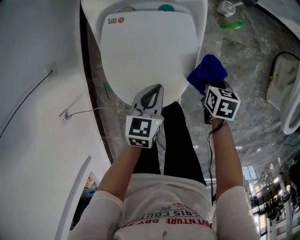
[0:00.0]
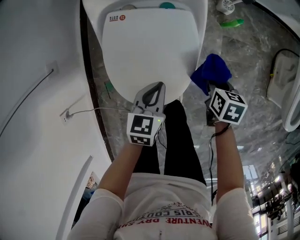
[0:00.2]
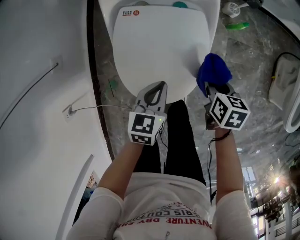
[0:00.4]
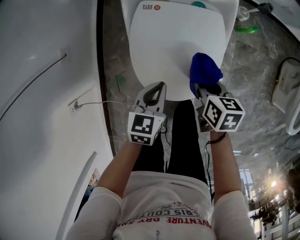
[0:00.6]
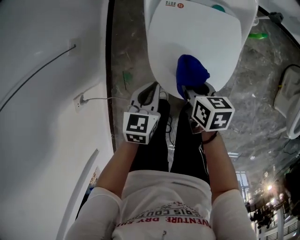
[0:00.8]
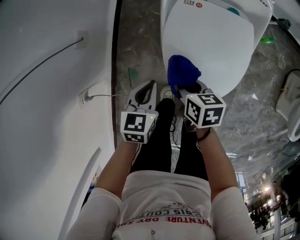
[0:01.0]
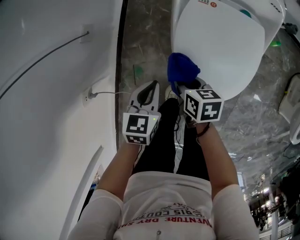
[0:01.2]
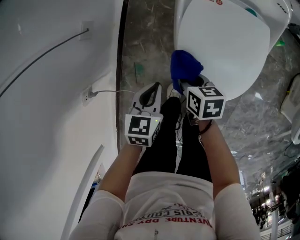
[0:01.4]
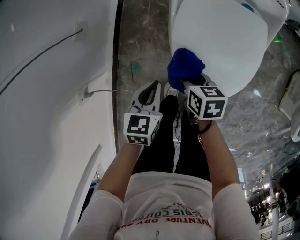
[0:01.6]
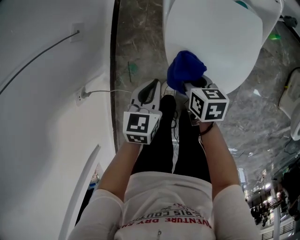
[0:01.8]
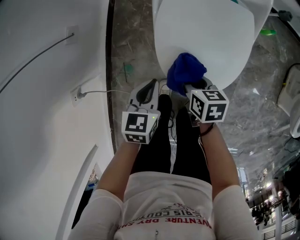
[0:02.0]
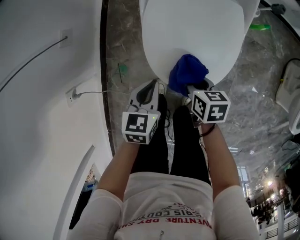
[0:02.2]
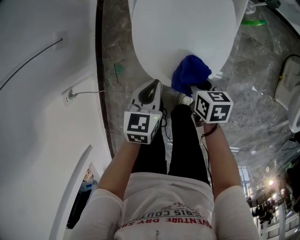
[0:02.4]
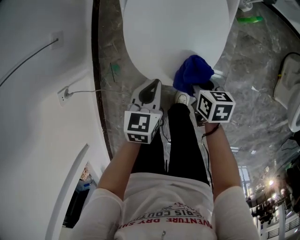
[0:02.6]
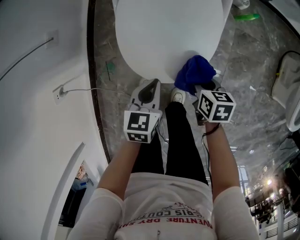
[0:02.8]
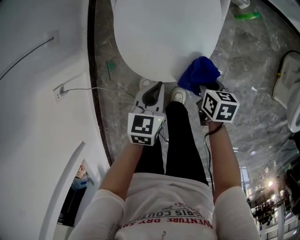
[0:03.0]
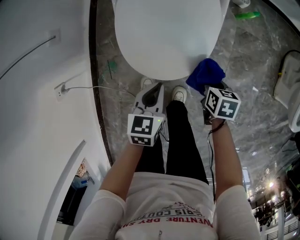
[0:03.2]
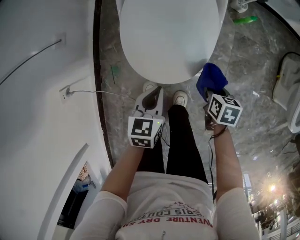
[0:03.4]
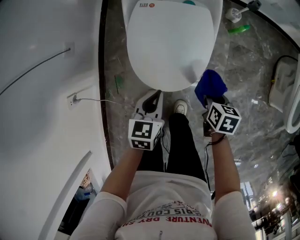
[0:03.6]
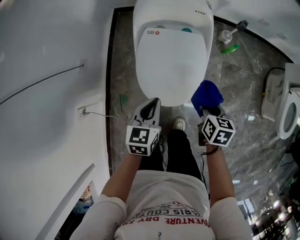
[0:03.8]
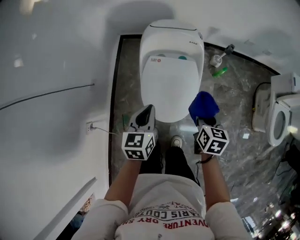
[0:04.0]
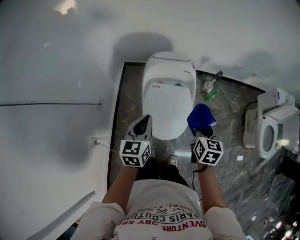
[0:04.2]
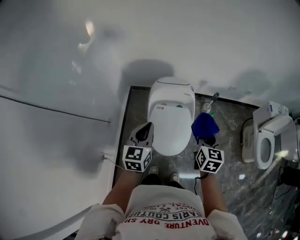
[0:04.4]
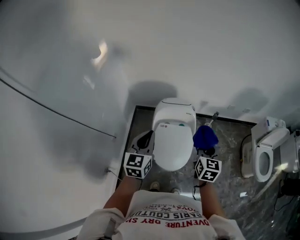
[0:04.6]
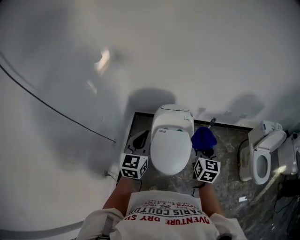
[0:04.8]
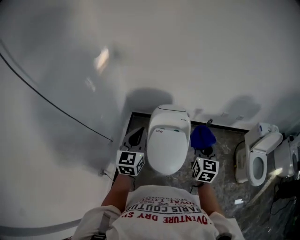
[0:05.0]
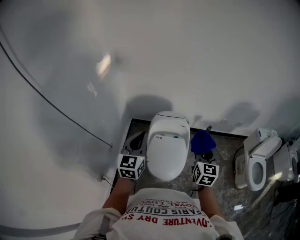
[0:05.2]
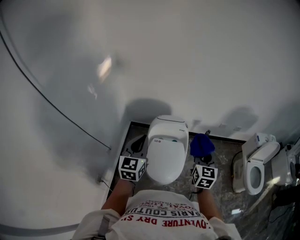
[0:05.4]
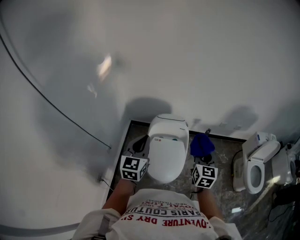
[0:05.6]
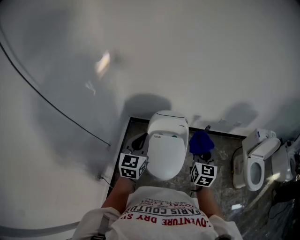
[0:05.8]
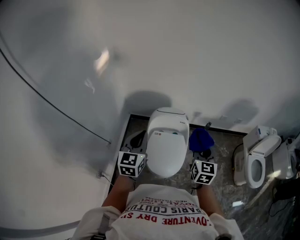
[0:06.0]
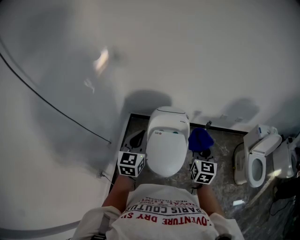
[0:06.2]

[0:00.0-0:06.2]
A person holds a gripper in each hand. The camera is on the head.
0:00.0 to 0:01.6: Both grippers move to the left, about 35 cm. The right gripper changes its angle by approximately 20 degrees.
0:01.6 to 0:03.2: Both grippers travel together to the right and backward, roughly 30 cm.
0:03.2 to 0:04.6: The two grippers go roughly 60 cm upward. The right gripper points its fingers roughly 50 degrees further upward. The left gripper tips its fingers upward by some 40 degrees.
0:04.6 to 0:06.2: The right gripper shifts by roughly 5 cm.

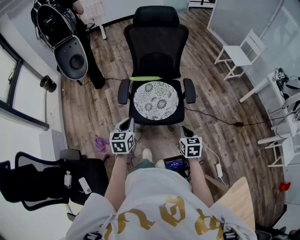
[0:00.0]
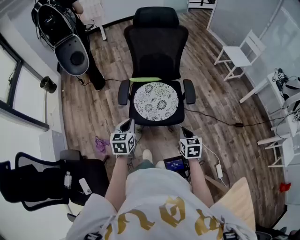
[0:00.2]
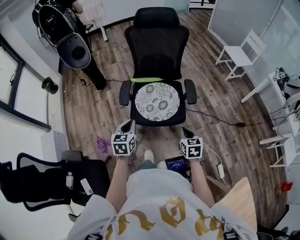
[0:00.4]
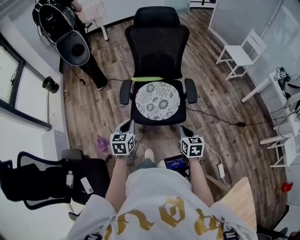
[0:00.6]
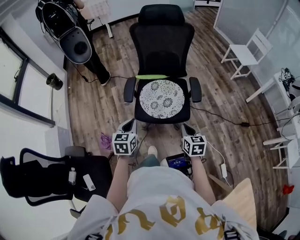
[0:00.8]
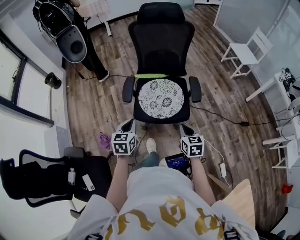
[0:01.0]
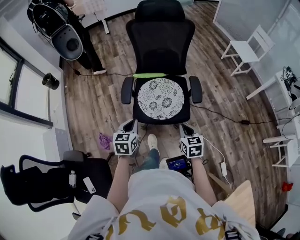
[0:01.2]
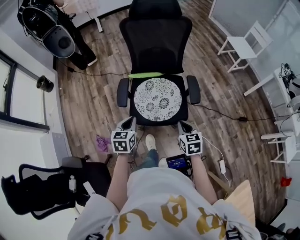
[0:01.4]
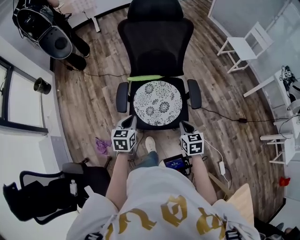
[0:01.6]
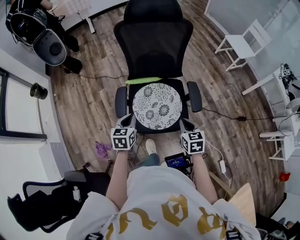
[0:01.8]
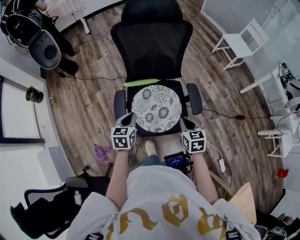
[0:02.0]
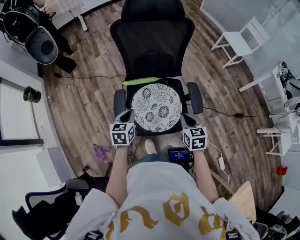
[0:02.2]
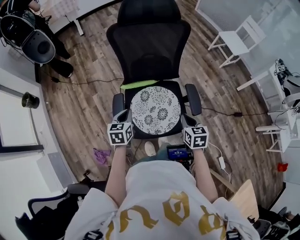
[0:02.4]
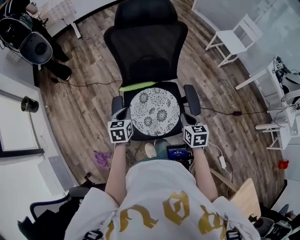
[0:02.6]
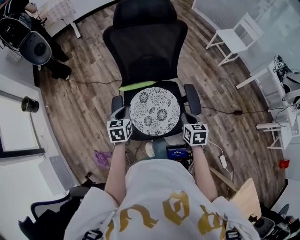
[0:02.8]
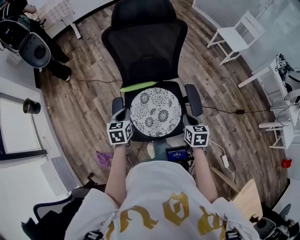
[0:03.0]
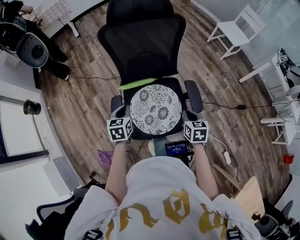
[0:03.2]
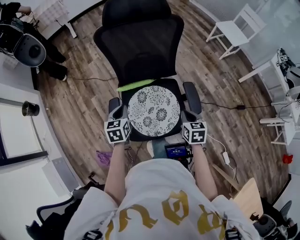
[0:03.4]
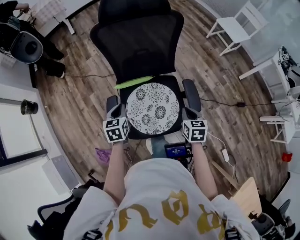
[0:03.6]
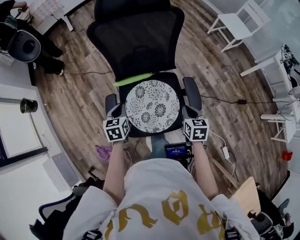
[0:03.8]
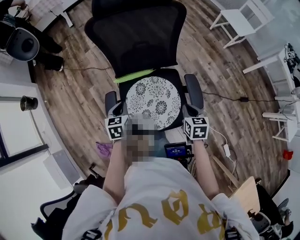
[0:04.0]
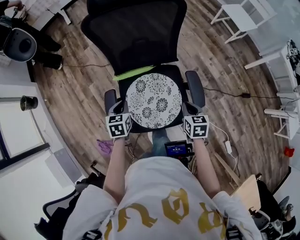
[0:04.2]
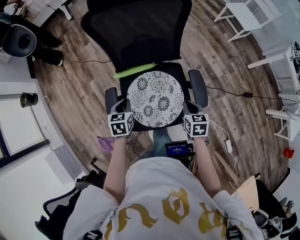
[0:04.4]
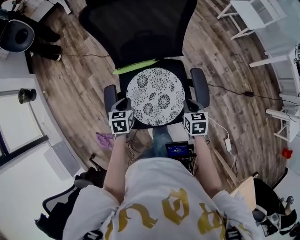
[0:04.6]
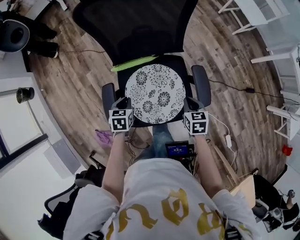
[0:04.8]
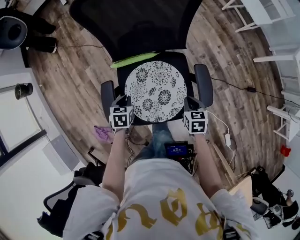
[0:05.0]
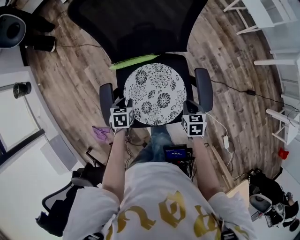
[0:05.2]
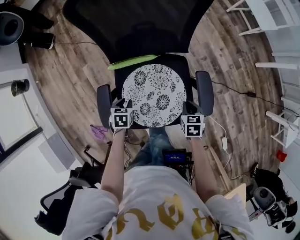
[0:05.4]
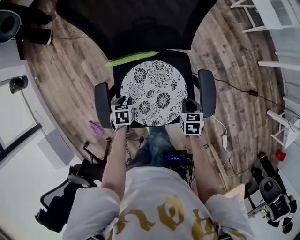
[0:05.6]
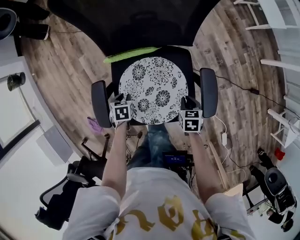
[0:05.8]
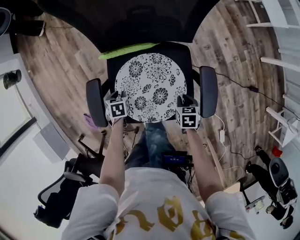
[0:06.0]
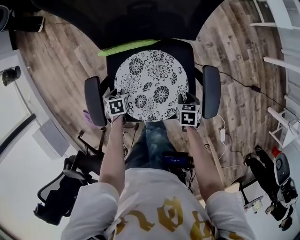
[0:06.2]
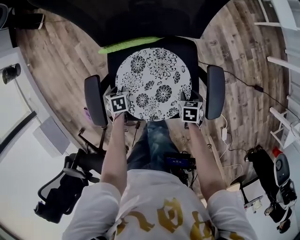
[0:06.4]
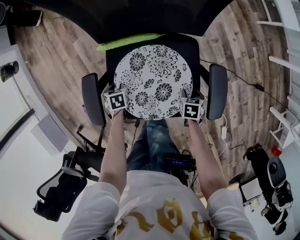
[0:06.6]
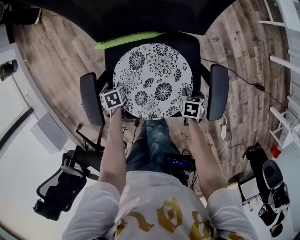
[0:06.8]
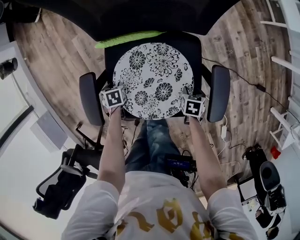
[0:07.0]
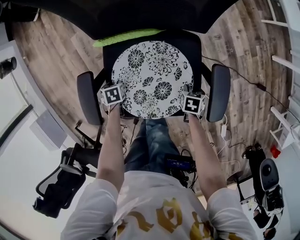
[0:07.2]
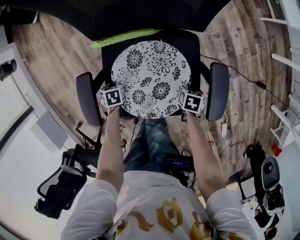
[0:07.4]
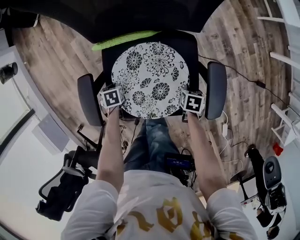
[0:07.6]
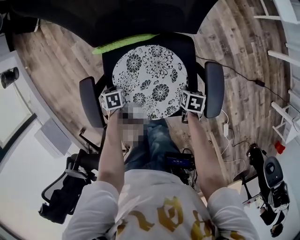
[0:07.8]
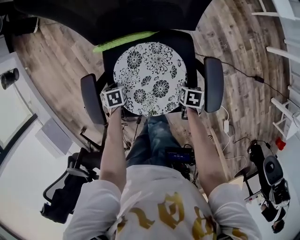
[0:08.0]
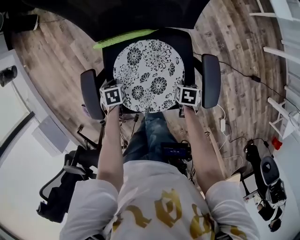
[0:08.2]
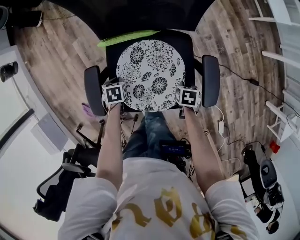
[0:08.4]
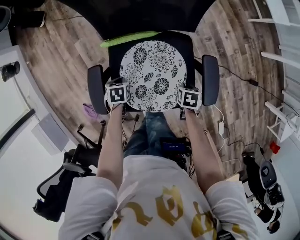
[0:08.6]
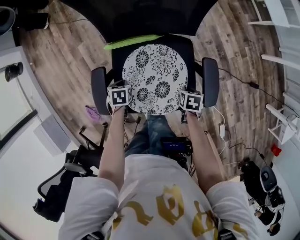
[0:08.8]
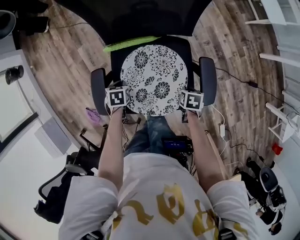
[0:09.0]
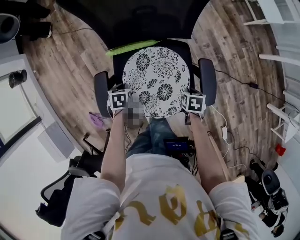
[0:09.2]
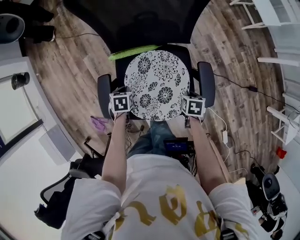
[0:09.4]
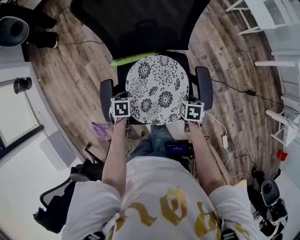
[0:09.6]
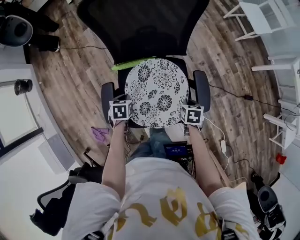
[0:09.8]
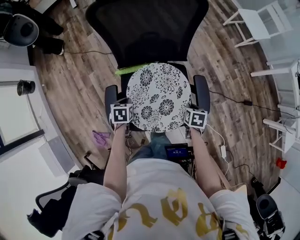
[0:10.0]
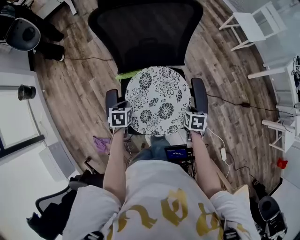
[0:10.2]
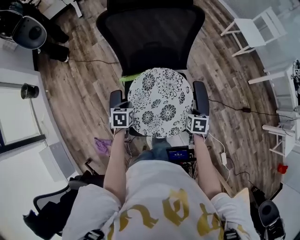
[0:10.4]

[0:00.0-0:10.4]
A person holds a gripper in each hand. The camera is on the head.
0:00.0 to 0:01.4: The grippers both shift forward by about 5 cm.
0:01.4 to 0:03.0: Both grippers travel together forward, approximately 20 cm.
0:03.0 to 0:04.4: The two grippers go approximately 10 cm downward and forward.
0:04.4 to 0:06.0: Both grippers move downward, about 20 cm. The left gripper swivels some 30 degrees, and opens its fingers. The right gripper rotates roughly 20 degrees.
0:06.0 to 0:07.4: Both grippers move downward, about 10 cm. The right gripper opens, then closes once more.
0:07.4 to 0:09.0: Both grippers move upward, some 10 cm.
0:09.0 to 0:10.4: Both grippers travel together upward, about 15 cm.

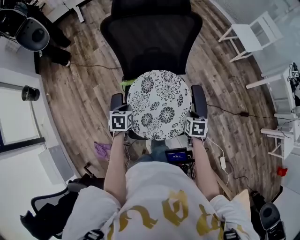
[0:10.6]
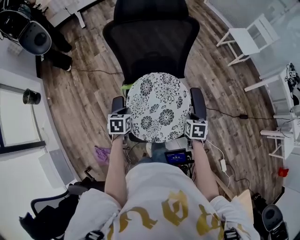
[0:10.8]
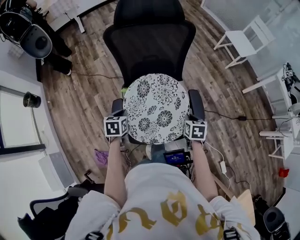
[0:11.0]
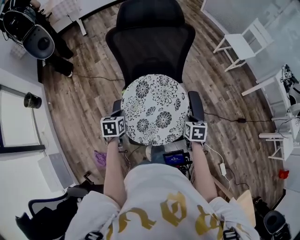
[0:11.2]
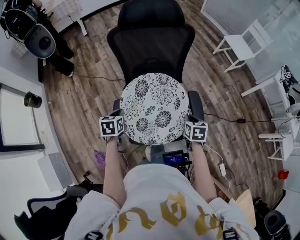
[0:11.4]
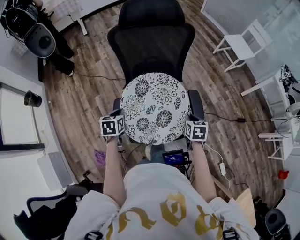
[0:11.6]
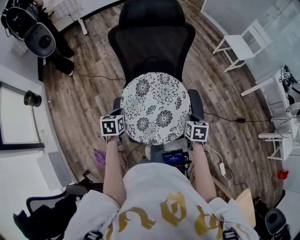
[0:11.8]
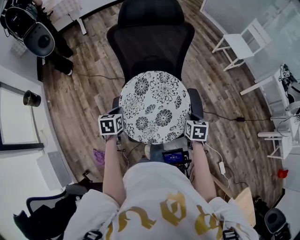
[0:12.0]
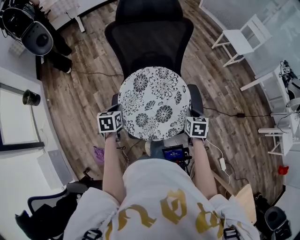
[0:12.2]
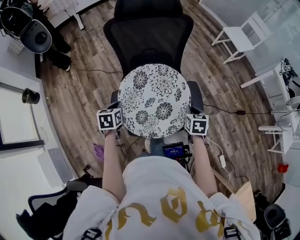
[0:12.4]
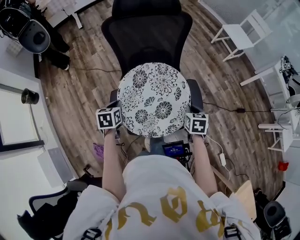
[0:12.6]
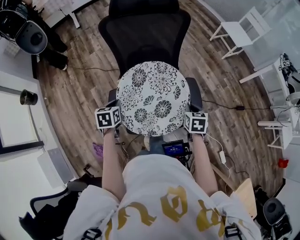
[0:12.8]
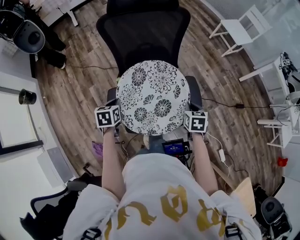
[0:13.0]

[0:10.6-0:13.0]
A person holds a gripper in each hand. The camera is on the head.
0:10.6 to 0:11.8: The two grippers go approximately 5 cm upward.
0:11.8 to 0:13.0: The grippers move only a little.

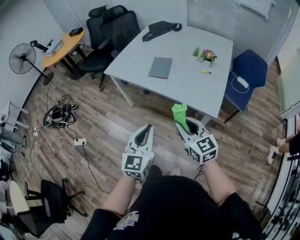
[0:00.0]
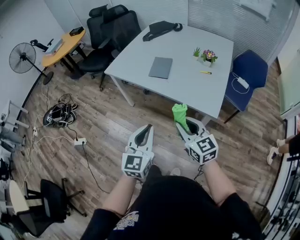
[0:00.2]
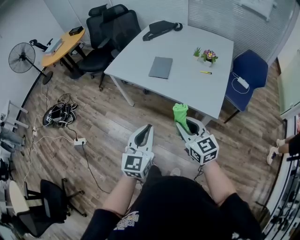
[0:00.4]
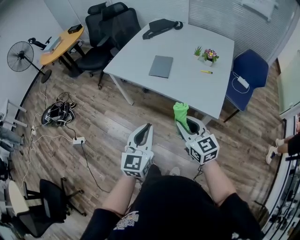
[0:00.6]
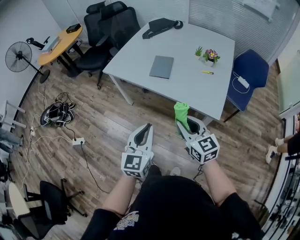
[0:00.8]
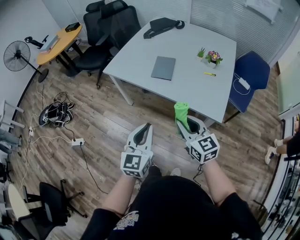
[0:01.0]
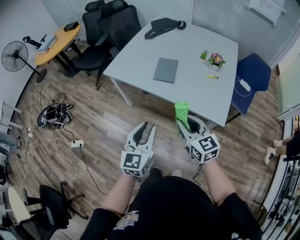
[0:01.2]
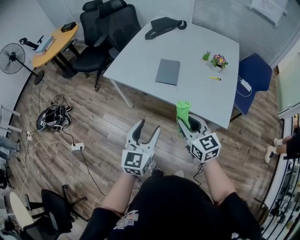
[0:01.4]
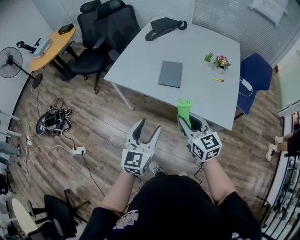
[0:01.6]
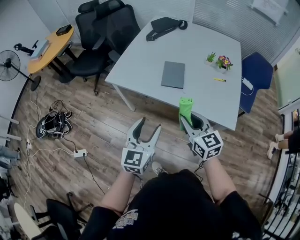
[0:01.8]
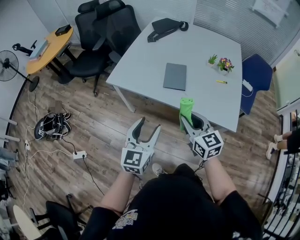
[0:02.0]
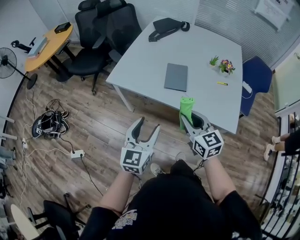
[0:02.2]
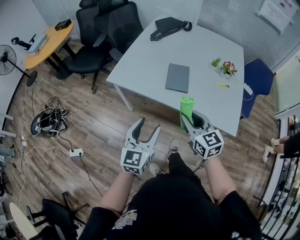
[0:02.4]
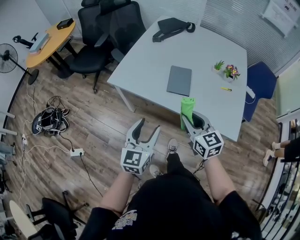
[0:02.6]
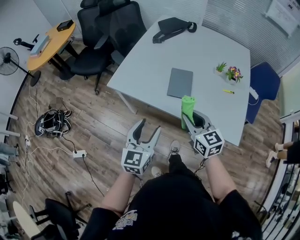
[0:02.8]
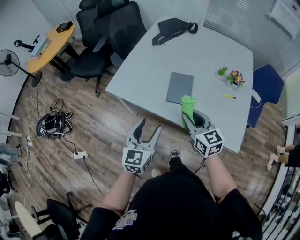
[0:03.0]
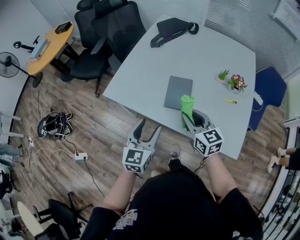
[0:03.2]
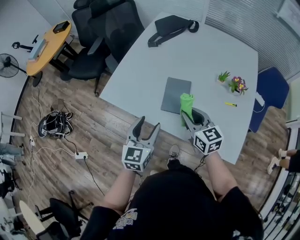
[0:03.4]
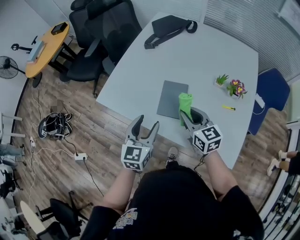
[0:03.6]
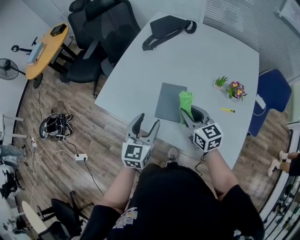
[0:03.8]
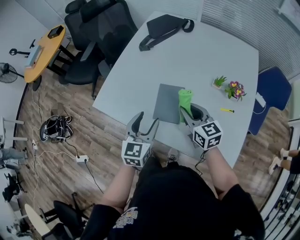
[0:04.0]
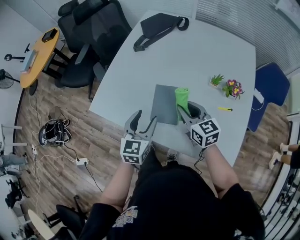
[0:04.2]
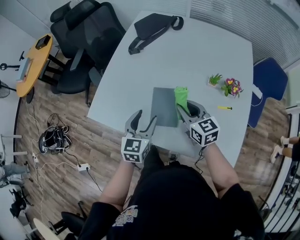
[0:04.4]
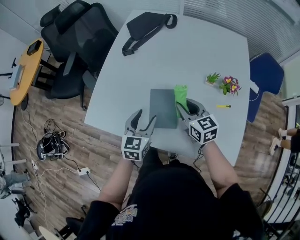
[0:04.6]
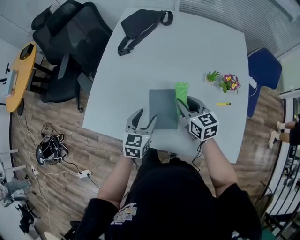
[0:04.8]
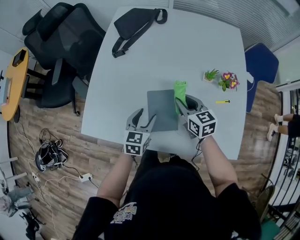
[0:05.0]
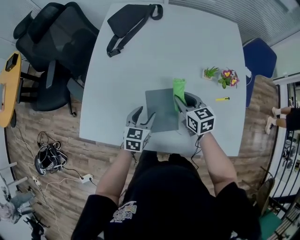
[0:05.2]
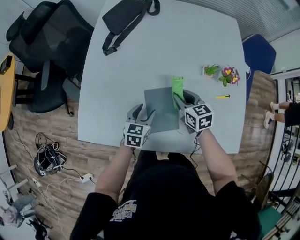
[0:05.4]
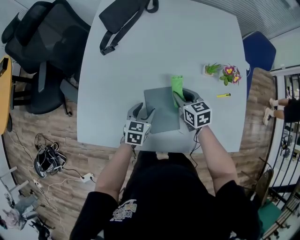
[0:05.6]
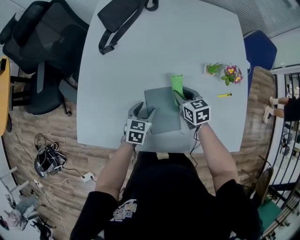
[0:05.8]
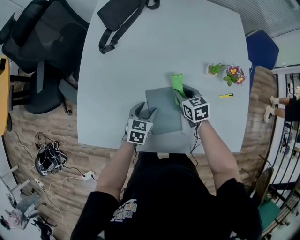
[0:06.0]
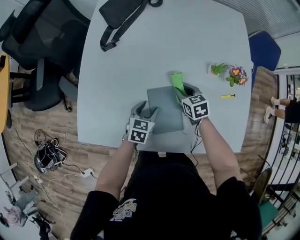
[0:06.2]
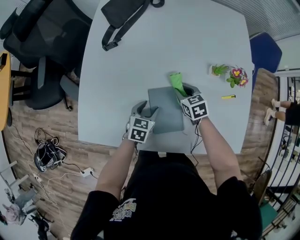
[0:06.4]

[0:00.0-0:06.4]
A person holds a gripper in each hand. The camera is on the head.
0:00.0 to 0:01.6: Both grippers travel together forward and to the left, about 15 cm. The left gripper opens up.
0:01.6 to 0:03.2: The grippers both shift forward by about 20 cm.
0:03.2 to 0:04.8: The right gripper is displaced forward and to the right by approximately 20 cm, while the left gripper travels forward, downward and to the right by about 25 cm.
0:04.8 to 0:06.4: Both grippers travel together downward and forward, approximately 15 cm. The left gripper rotates some 20 degrees; the right gripper turns by about 30 degrees.
